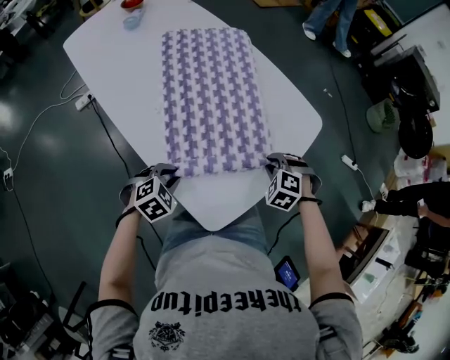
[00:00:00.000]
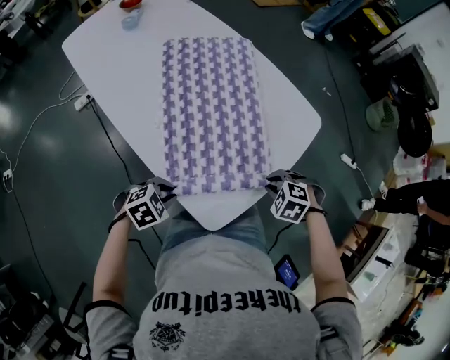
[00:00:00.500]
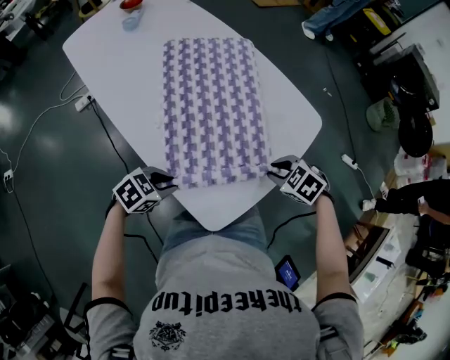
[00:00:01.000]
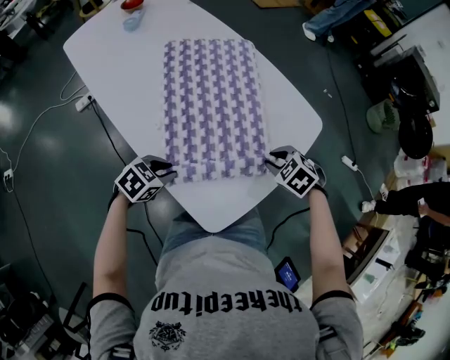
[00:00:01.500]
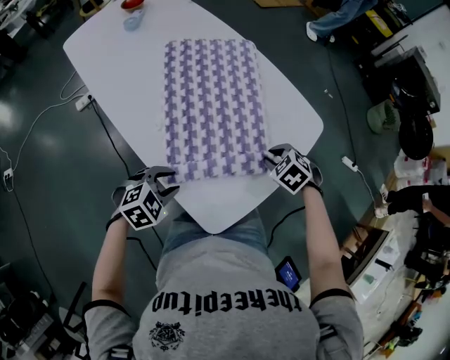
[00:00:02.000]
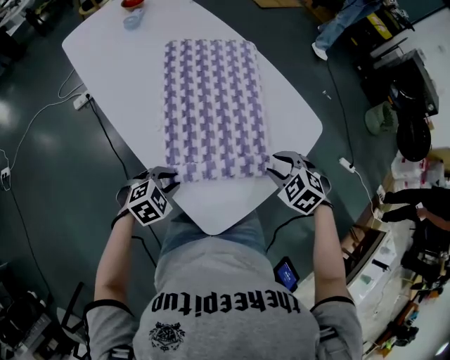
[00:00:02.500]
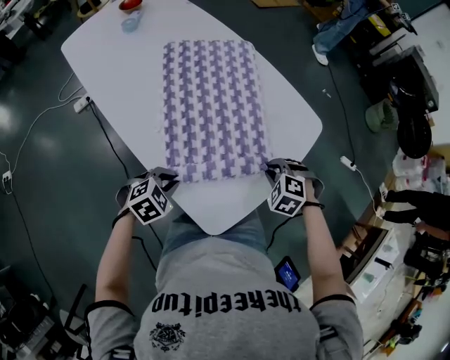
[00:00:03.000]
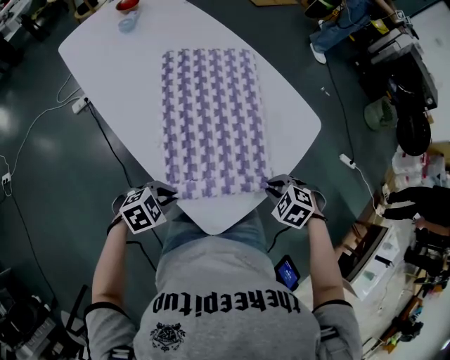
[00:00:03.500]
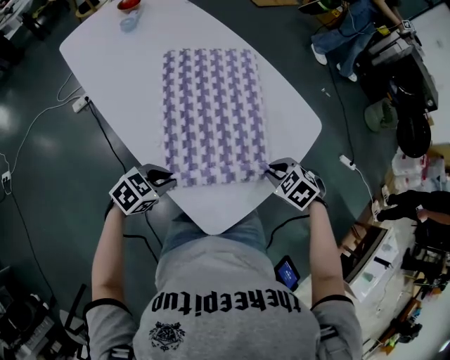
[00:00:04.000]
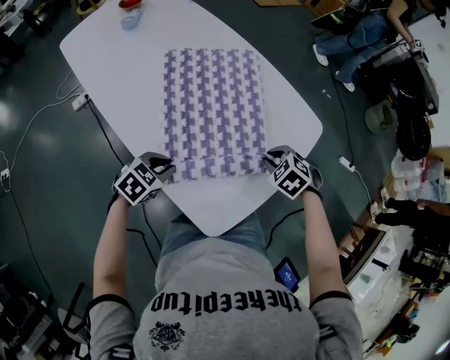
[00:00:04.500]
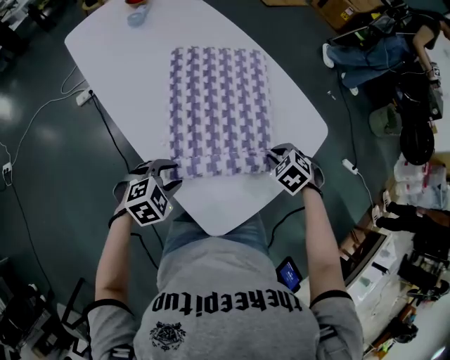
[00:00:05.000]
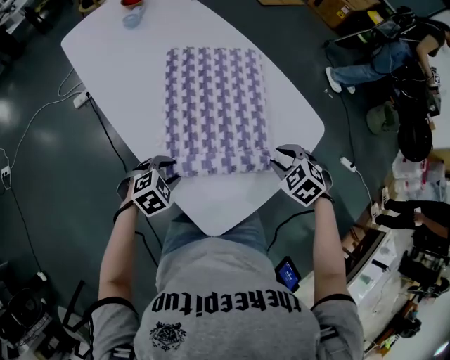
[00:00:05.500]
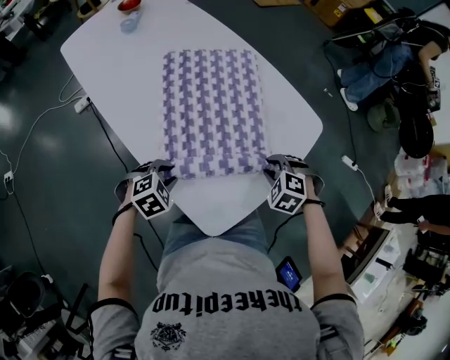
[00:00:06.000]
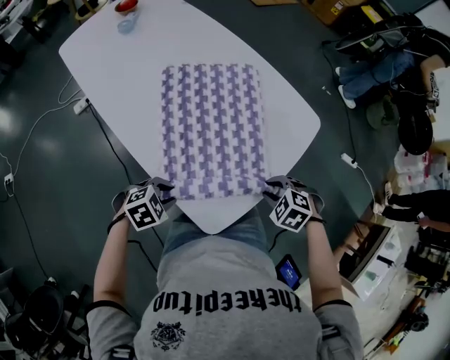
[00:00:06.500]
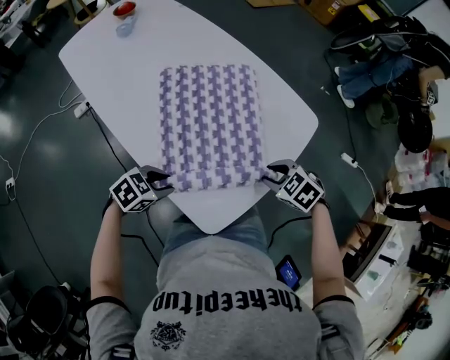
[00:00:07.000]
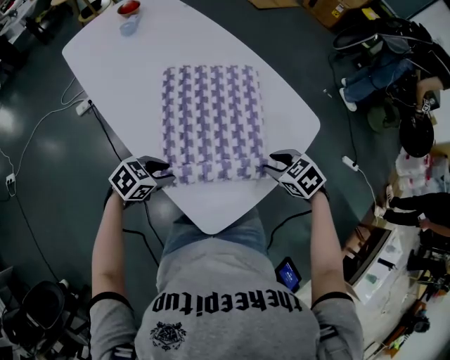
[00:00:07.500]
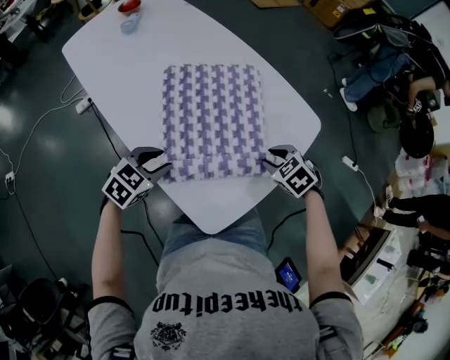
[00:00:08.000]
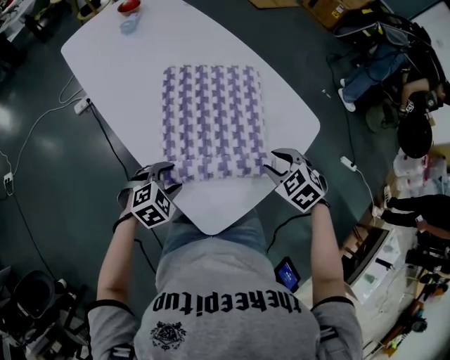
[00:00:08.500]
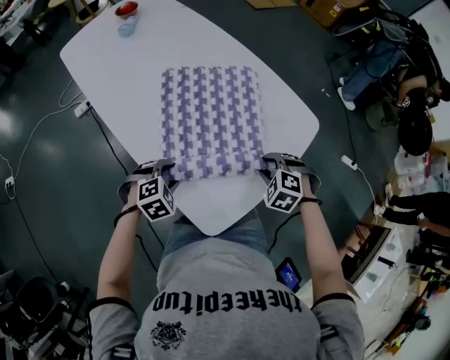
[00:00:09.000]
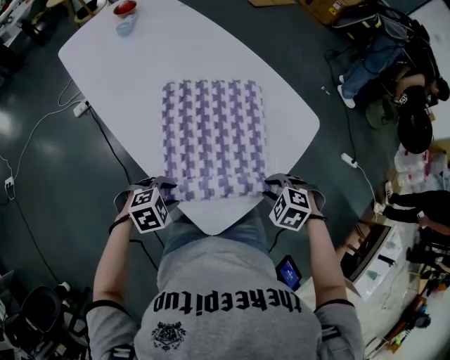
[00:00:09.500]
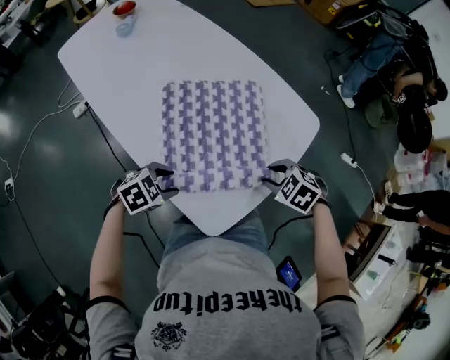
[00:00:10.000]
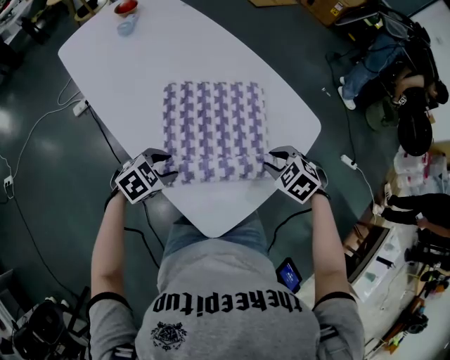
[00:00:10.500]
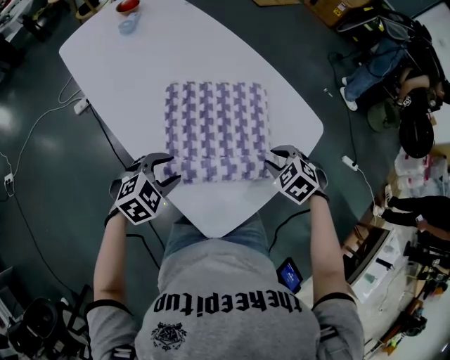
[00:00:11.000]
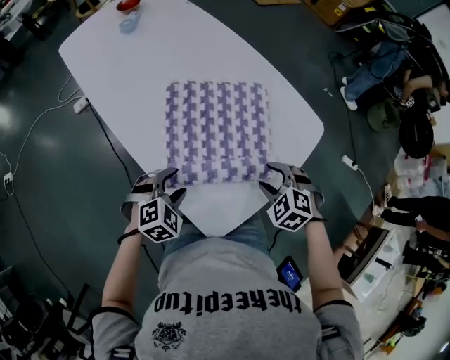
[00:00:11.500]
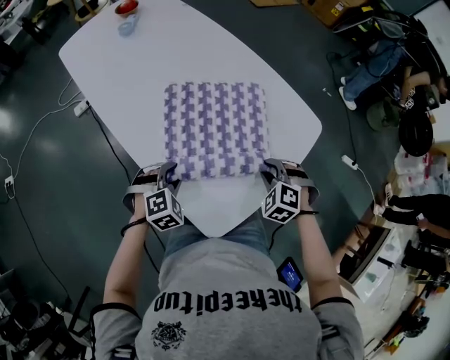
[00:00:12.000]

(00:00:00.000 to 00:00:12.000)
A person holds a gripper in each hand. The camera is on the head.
00:00:00.000 - 00:00:02.000: The left gripper changes place by roughly 5 cm. The right gripper turns by roughly 20 degrees.
00:00:02.000 - 00:00:04.000: The left gripper rotates some 20 degrees.
00:00:04.000 - 00:00:06.000: The right gripper swivels roughly 20 degrees. The left gripper swivels roughly 30 degrees.
00:00:06.000 - 00:00:08.000: The left gripper travels upward by approximately 5 cm, and changes its angle by some 30 degrees. Meanwhile the right gripper swivels some 30 degrees.
00:00:08.000 - 00:00:10.000: The left gripper moves about 10 cm, and rotates about 20 degrees. The right gripper changes place by about 5 cm.
00:00:10.000 - 00:00:12.000: The right gripper turns by roughly 30 degrees, while the left gripper changes its angle by about 40 degrees.

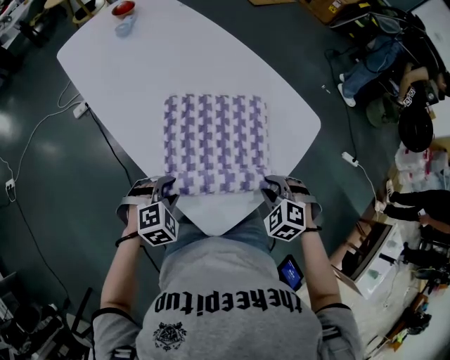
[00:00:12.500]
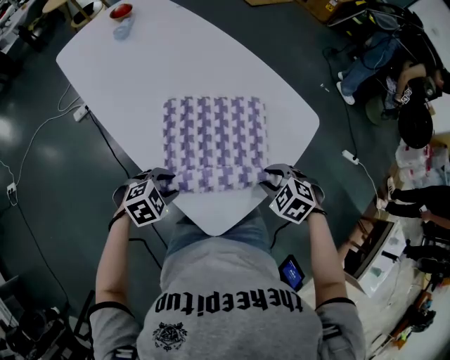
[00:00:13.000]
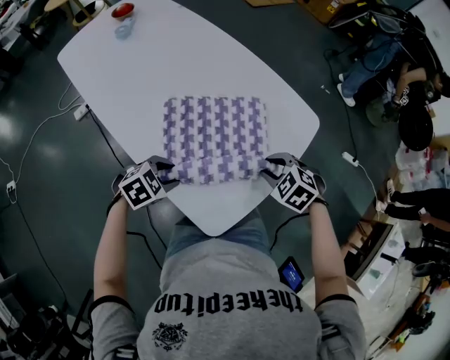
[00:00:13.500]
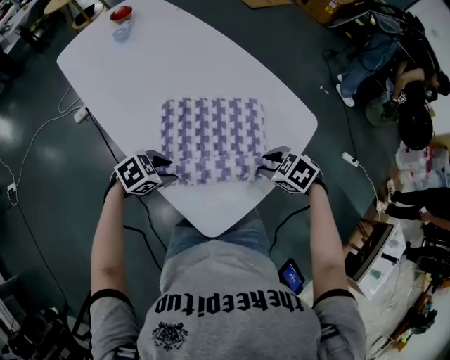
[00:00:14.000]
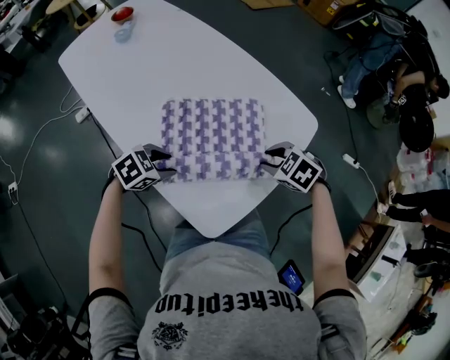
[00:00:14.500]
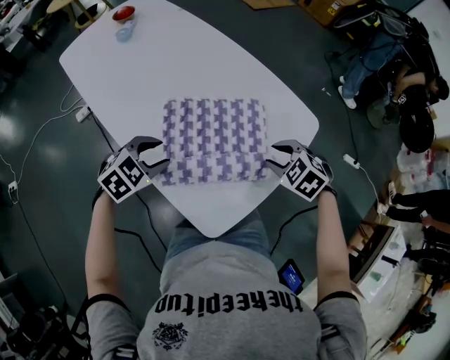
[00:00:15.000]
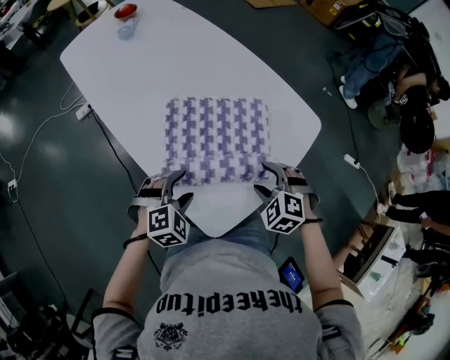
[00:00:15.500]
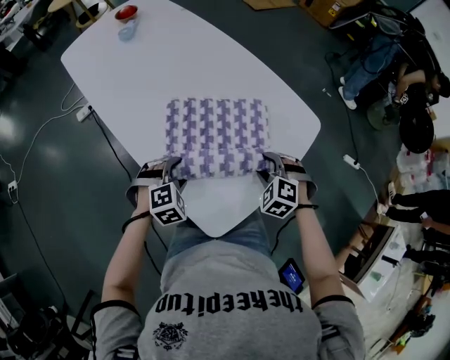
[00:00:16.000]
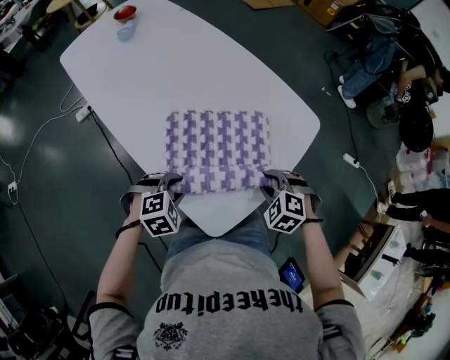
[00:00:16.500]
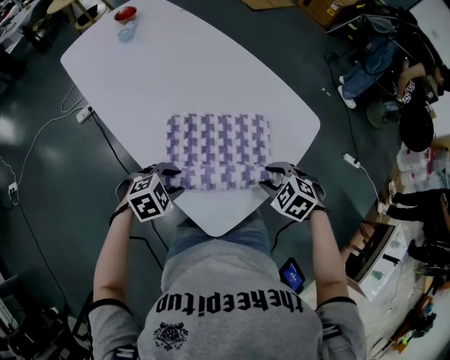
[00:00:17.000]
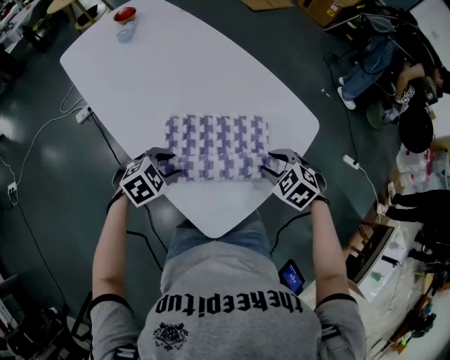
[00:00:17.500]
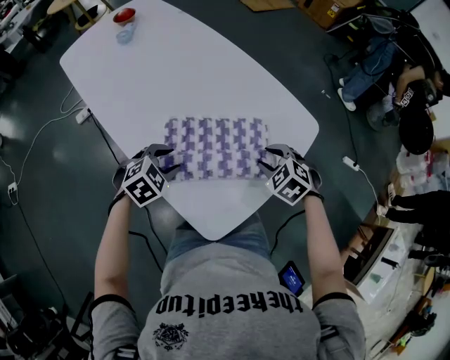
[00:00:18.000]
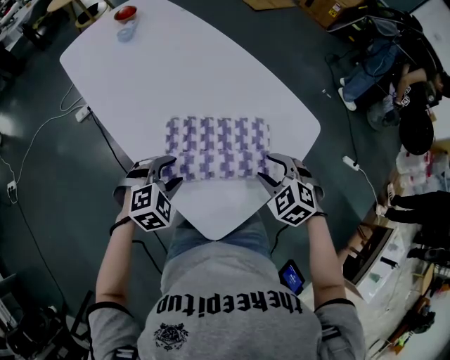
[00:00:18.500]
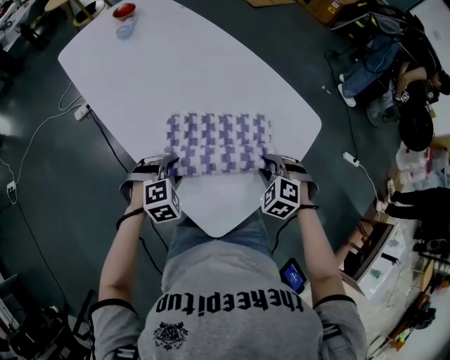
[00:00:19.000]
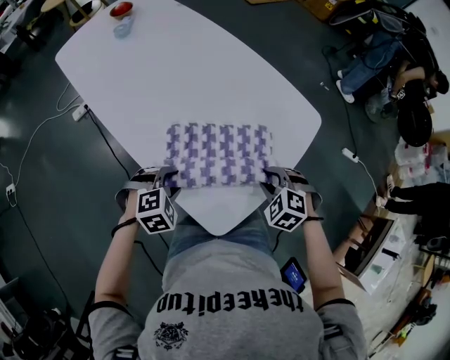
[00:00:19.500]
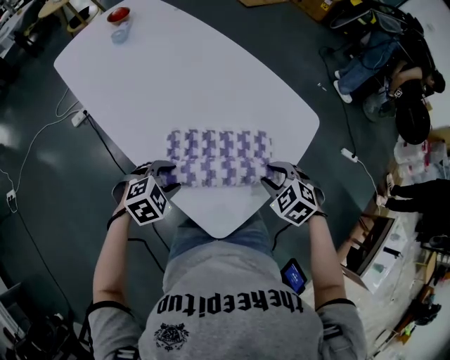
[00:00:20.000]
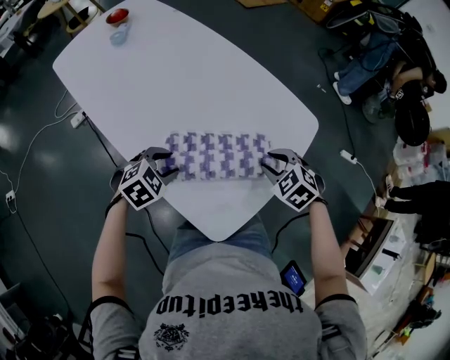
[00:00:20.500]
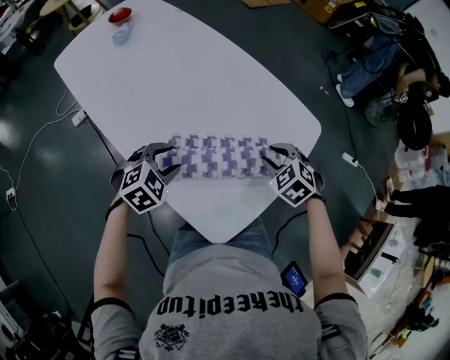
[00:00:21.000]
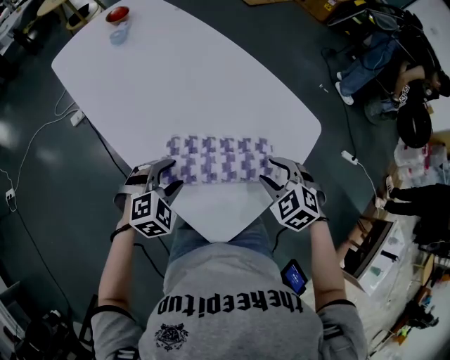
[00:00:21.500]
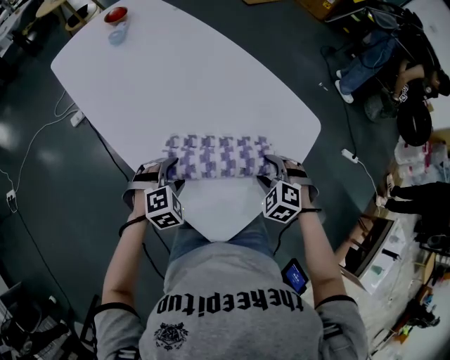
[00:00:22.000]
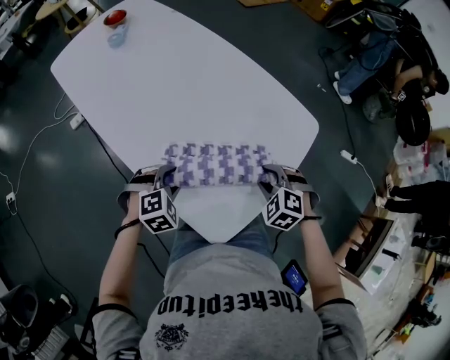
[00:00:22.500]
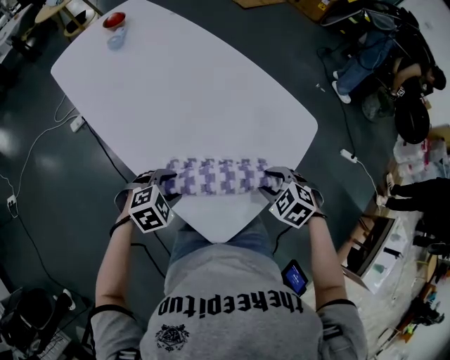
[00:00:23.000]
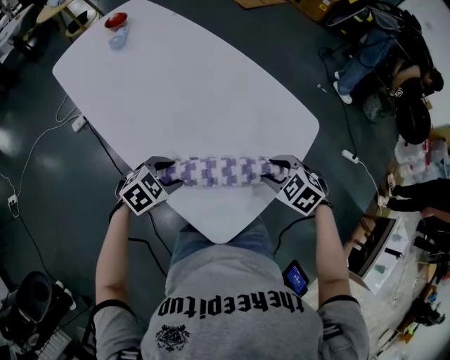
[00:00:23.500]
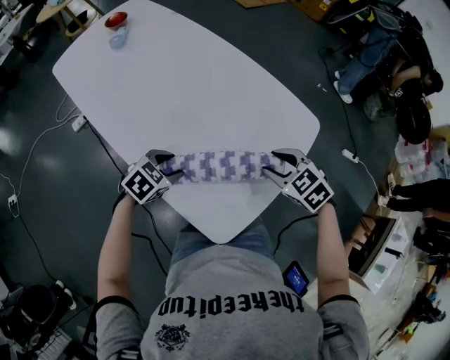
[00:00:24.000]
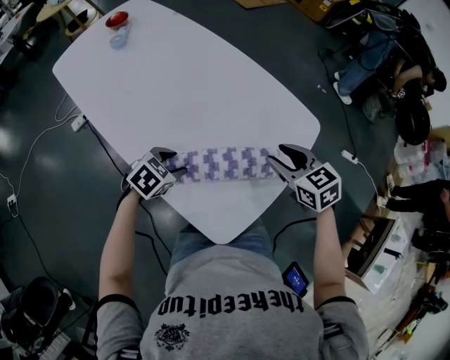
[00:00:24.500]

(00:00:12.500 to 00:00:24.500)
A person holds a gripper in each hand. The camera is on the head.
00:00:12.500 - 00:00:14.500: The left gripper ends up roughly 5 cm from where it was, and changes its angle by some 30 degrees; the right gripper shifts by roughly 10 cm, and turns by some 20 degrees.
00:00:14.500 - 00:00:16.500: The right gripper moves about 5 cm, swivels about 20 degrees, and opens and closes again. Meanwhile the left gripper goes upward and returns, some 5 cm each way, and swivels about 30 degrees.
00:00:16.500 - 00:00:18.500: The grippers both shift forward by some 5 cm.
00:00:22.500 - 00:00:24.500: The right gripper travels upward and forward by approximately 10 cm, and rolls clockwise, seen from behind, by approximately 40 degrees; the left gripper rotates approximately 30 degrees.

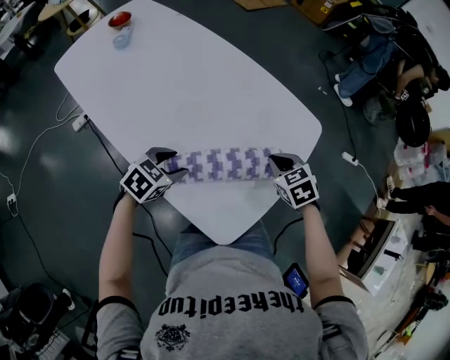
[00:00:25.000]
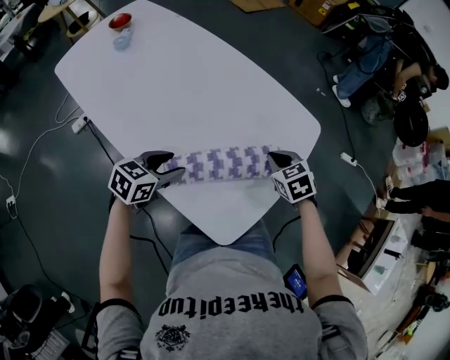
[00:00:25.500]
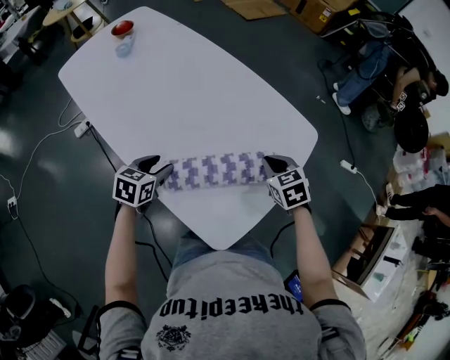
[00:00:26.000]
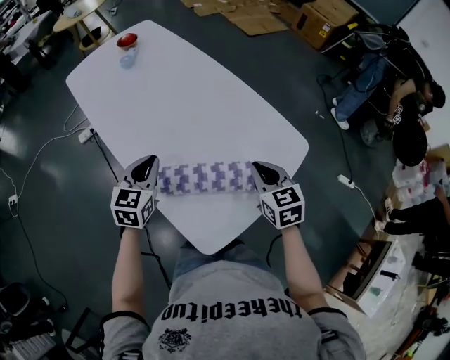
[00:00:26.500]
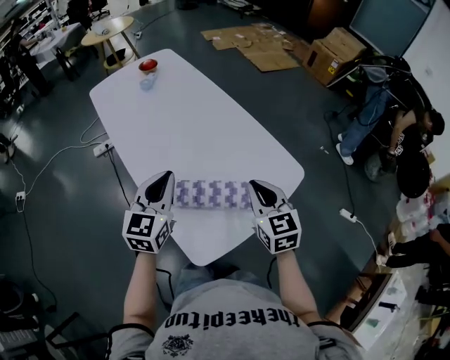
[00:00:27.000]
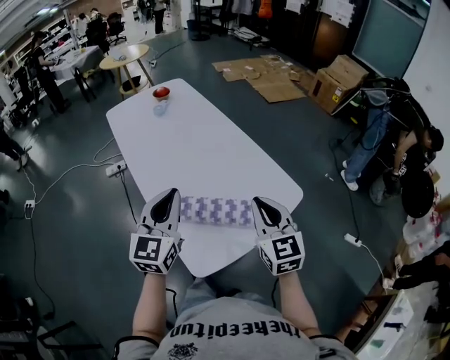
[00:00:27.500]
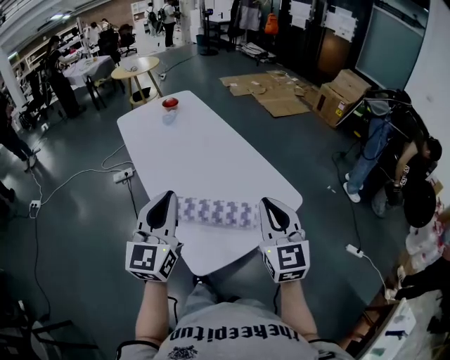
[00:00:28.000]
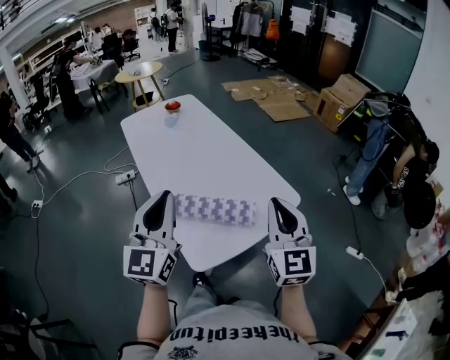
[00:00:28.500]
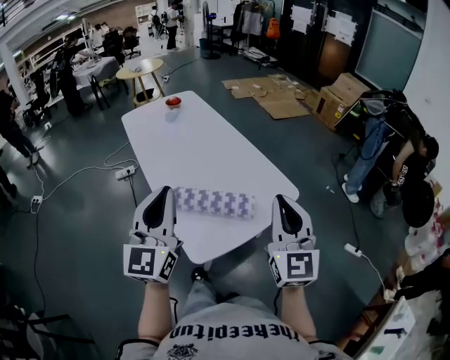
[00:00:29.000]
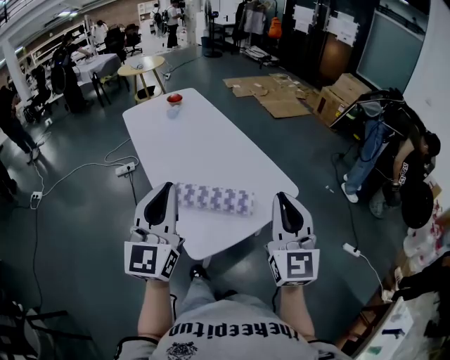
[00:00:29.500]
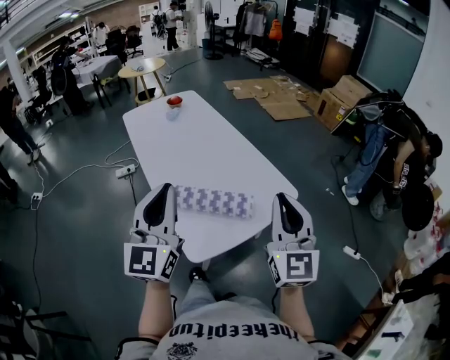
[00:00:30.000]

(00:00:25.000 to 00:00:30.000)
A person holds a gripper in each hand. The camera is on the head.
00:00:25.000 - 00:00:27.500: Both grippers move upward, some 30 cm. The left gripper angles its fingers upward, by about 50 degrees, and closes; the right gripper angles its fingers upward, by some 40 degrees.
00:00:27.500 - 00:00:30.000: The right gripper heads backward, upward and to the right, covering approximately 20 cm, and swivels approximately 20 degrees; the left gripper goes some 20 cm backward and upward.
